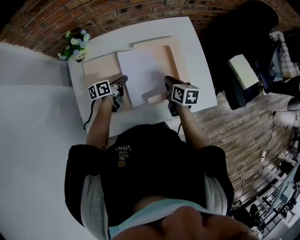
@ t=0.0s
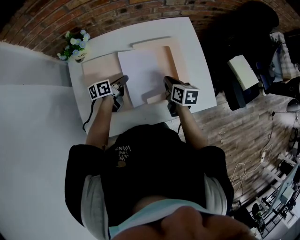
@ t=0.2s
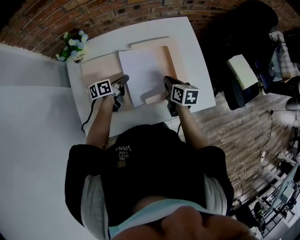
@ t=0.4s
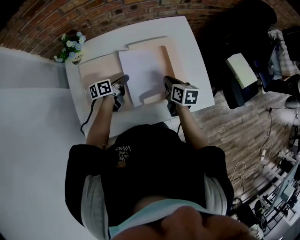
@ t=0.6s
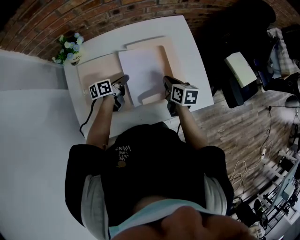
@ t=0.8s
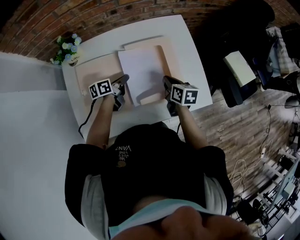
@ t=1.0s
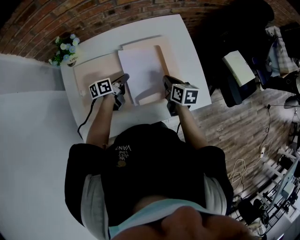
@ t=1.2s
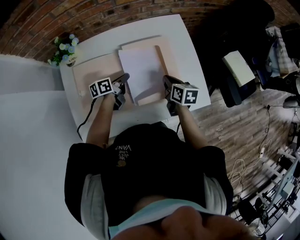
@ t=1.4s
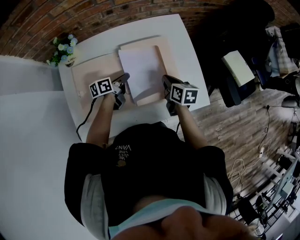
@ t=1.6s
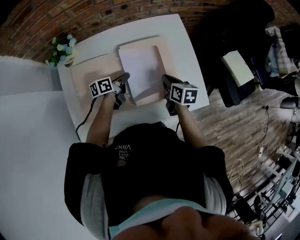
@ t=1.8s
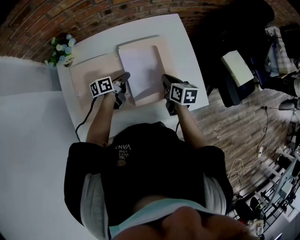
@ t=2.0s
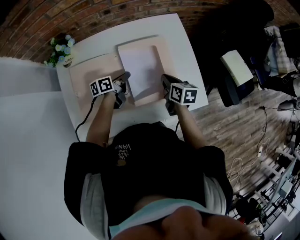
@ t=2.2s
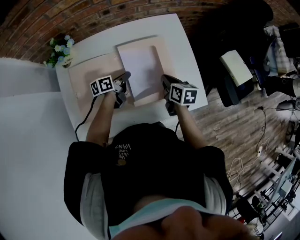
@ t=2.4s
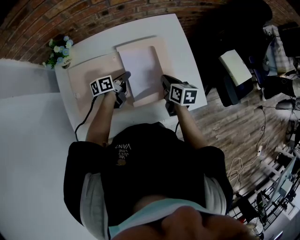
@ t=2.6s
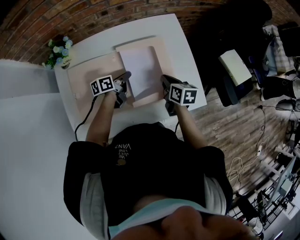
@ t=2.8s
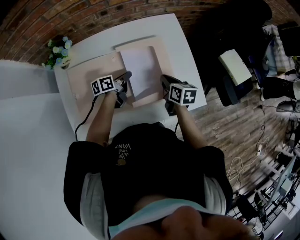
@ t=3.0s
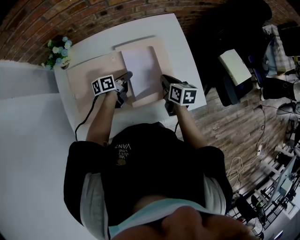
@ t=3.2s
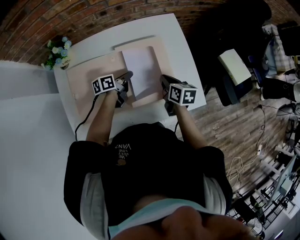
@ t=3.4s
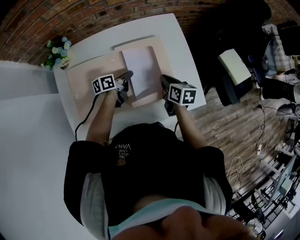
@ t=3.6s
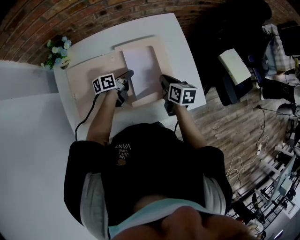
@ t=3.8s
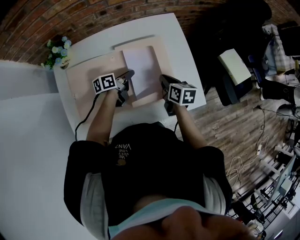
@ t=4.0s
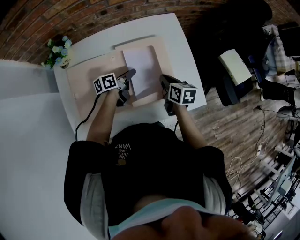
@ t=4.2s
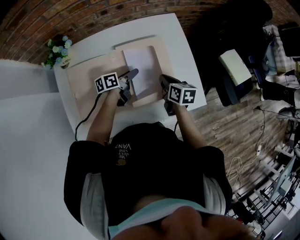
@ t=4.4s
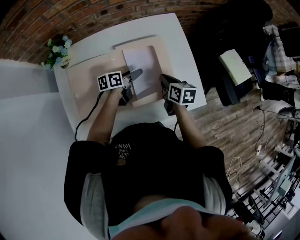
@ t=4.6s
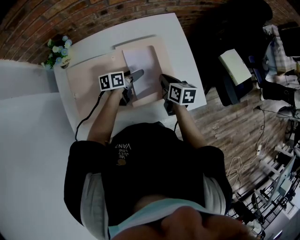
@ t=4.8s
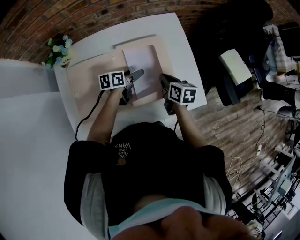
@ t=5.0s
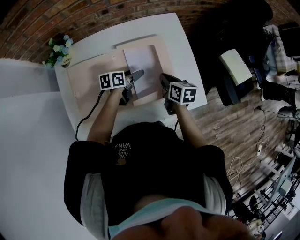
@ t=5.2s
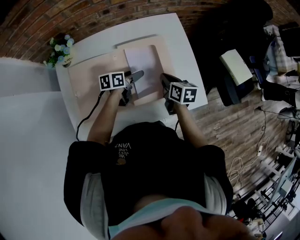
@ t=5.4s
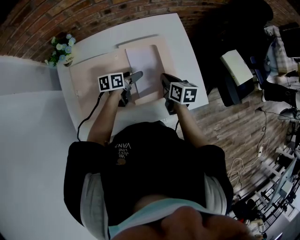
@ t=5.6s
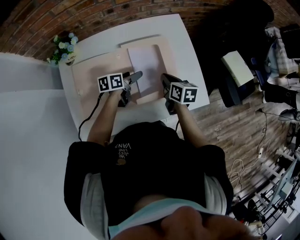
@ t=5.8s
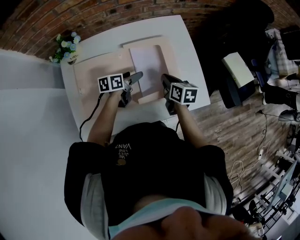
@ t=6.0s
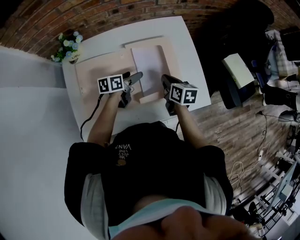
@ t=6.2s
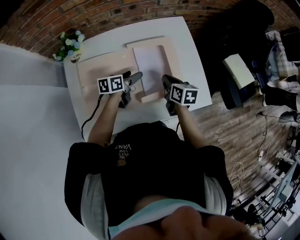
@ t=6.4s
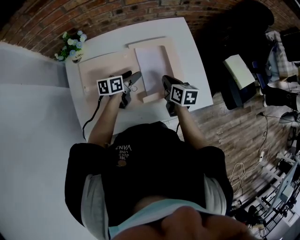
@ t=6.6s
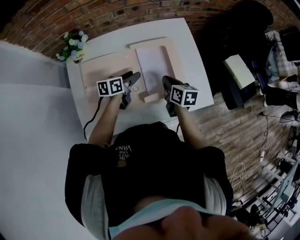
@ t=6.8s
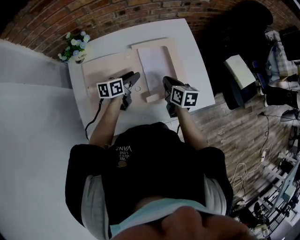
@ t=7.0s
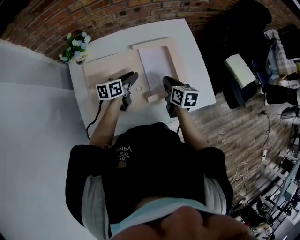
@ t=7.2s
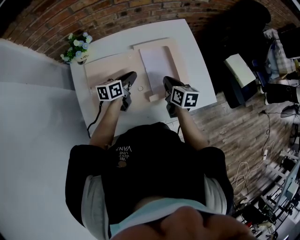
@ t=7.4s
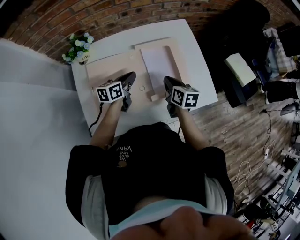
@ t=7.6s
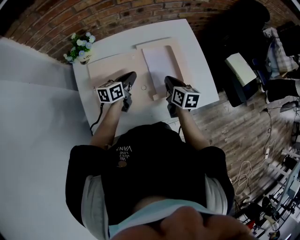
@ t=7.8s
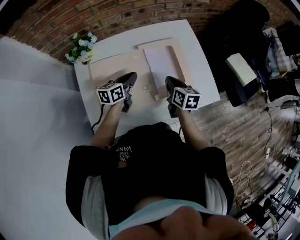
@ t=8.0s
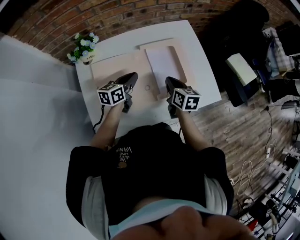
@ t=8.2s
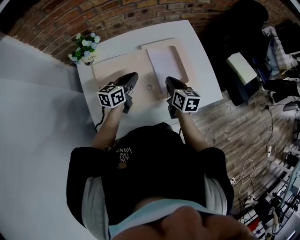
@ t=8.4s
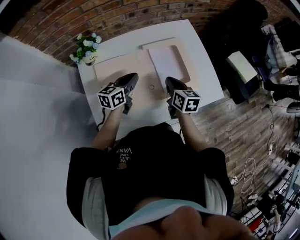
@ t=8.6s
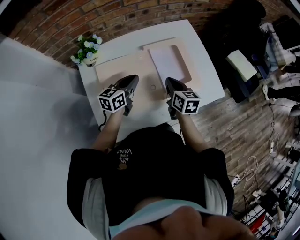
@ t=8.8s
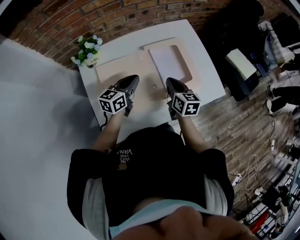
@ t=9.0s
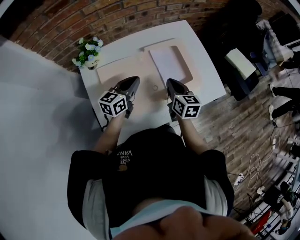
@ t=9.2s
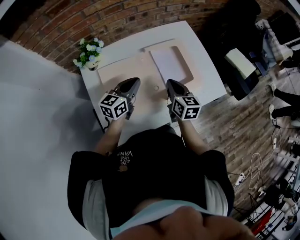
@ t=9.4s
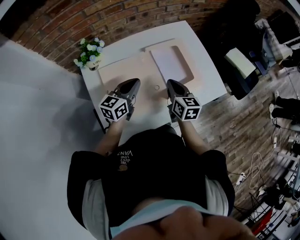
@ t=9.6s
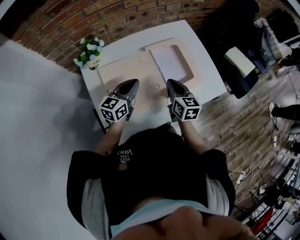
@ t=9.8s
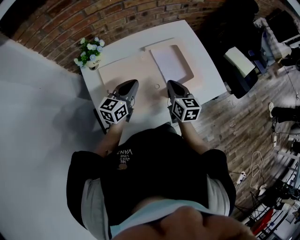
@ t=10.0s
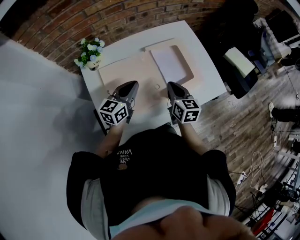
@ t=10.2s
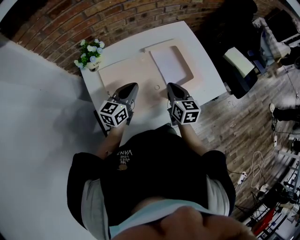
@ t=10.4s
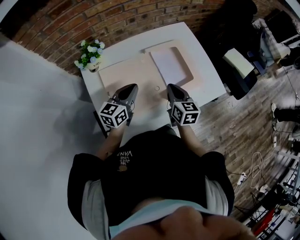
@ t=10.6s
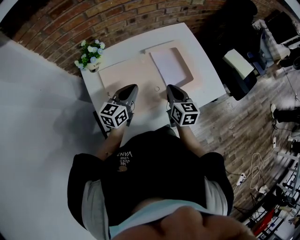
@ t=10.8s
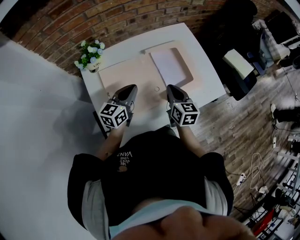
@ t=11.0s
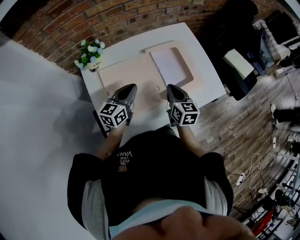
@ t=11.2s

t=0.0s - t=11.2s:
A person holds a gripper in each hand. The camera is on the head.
t=0.0s - t=1.6s: The left gripper travels to the right by approximately 5 cm.
t=1.6s - t=3.2s: The grippers move only a little.
t=3.2s - t=4.8s: The left gripper opens its fingers.
t=4.8s - t=6.4s: The left gripper is displaced to the left by about 5 cm.
t=6.4s - t=8.0s: The left gripper goes roughly 10 cm to the left and upward, and closes its fingers. The right gripper shifts by some 5 cm.
t=8.0s - t=9.6s: The right gripper shifts about 5 cm to the left. Meanwhile the left gripper heads upward and backward, covering about 10 cm, and turns by some 20 degrees.
t=9.6s - t=11.2s: The grippers stay close to where they were, moving slightly.

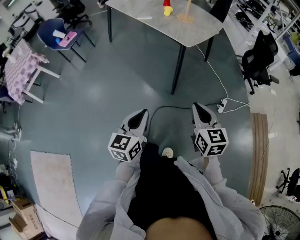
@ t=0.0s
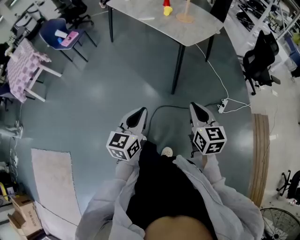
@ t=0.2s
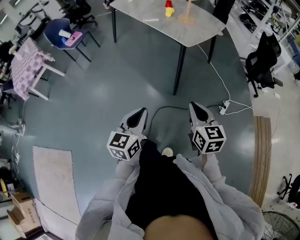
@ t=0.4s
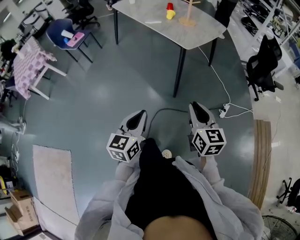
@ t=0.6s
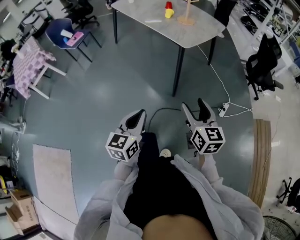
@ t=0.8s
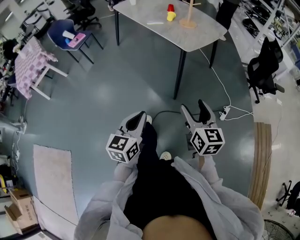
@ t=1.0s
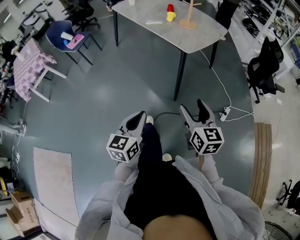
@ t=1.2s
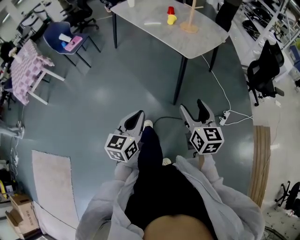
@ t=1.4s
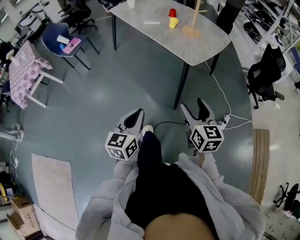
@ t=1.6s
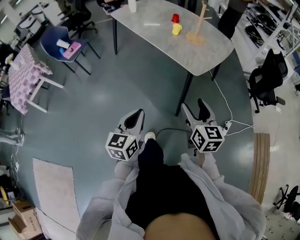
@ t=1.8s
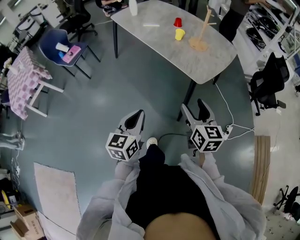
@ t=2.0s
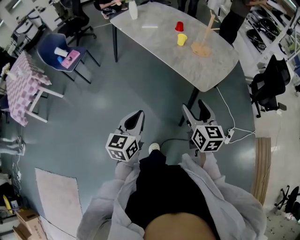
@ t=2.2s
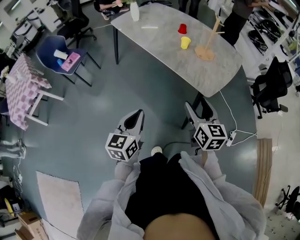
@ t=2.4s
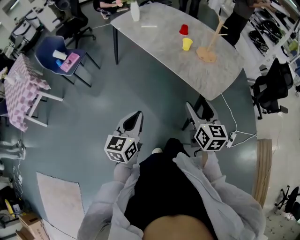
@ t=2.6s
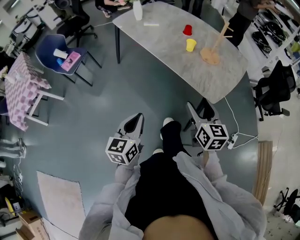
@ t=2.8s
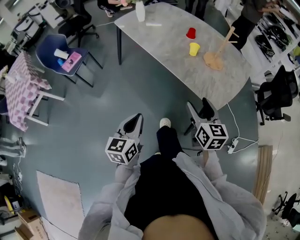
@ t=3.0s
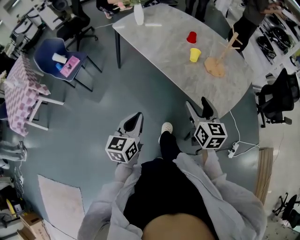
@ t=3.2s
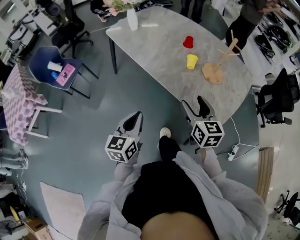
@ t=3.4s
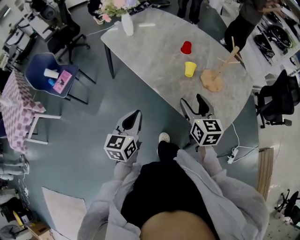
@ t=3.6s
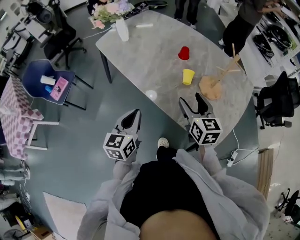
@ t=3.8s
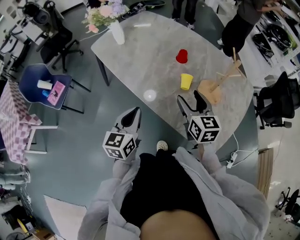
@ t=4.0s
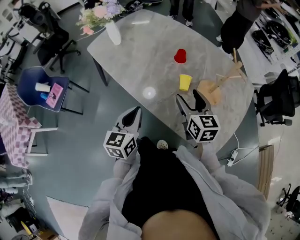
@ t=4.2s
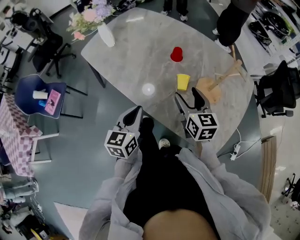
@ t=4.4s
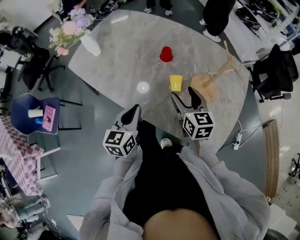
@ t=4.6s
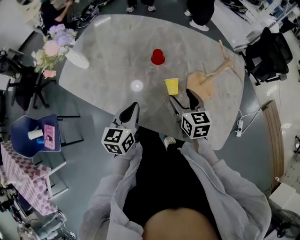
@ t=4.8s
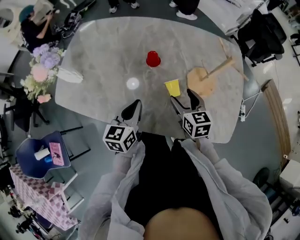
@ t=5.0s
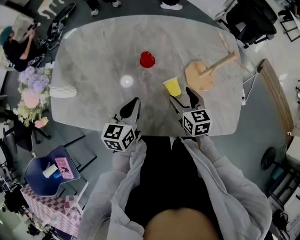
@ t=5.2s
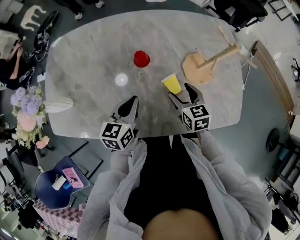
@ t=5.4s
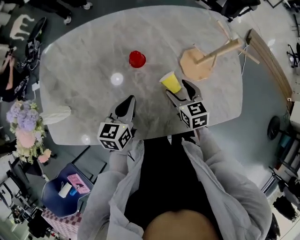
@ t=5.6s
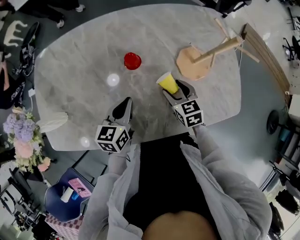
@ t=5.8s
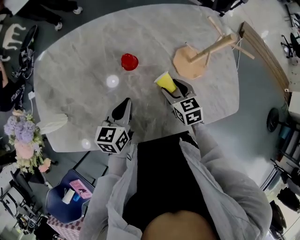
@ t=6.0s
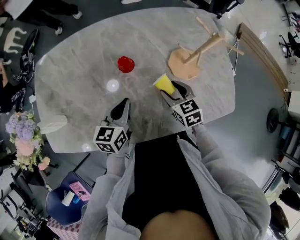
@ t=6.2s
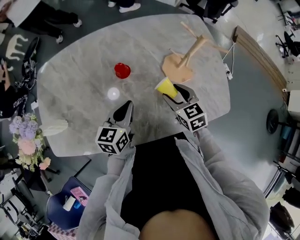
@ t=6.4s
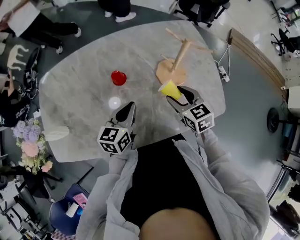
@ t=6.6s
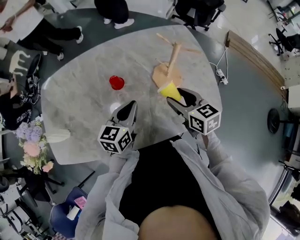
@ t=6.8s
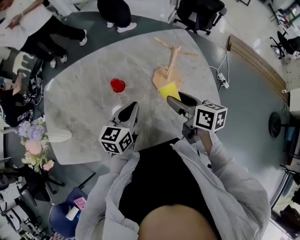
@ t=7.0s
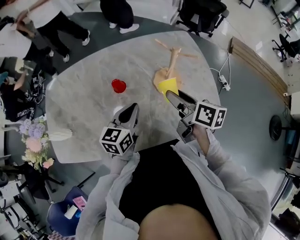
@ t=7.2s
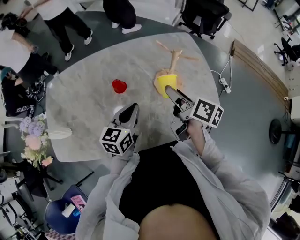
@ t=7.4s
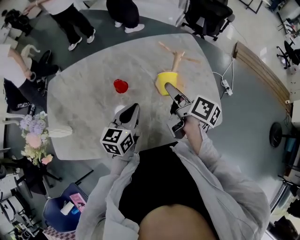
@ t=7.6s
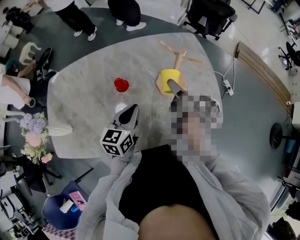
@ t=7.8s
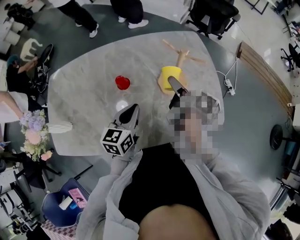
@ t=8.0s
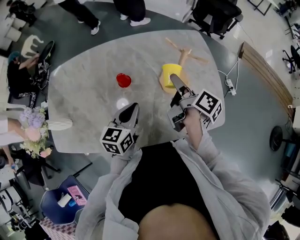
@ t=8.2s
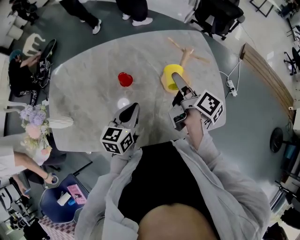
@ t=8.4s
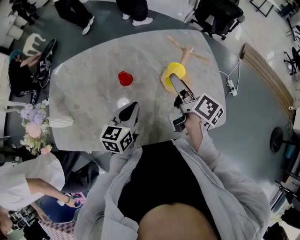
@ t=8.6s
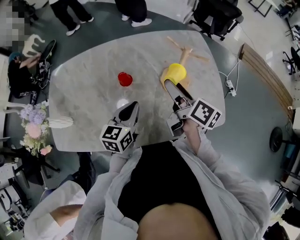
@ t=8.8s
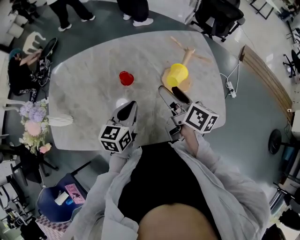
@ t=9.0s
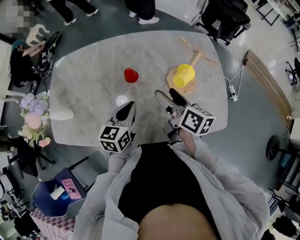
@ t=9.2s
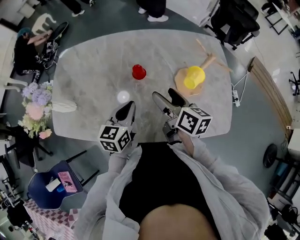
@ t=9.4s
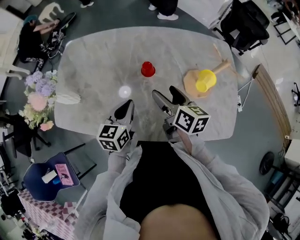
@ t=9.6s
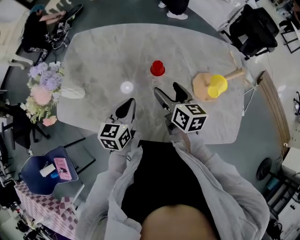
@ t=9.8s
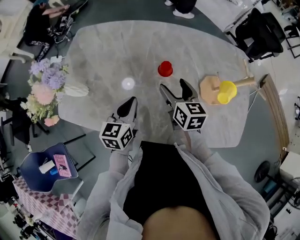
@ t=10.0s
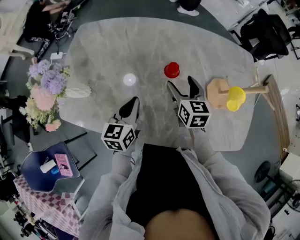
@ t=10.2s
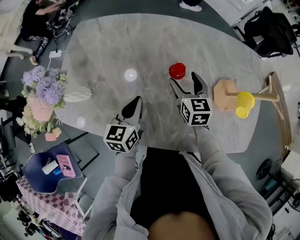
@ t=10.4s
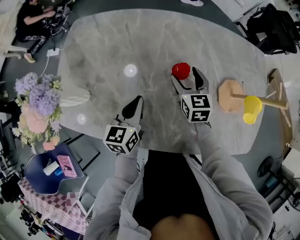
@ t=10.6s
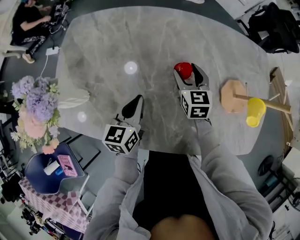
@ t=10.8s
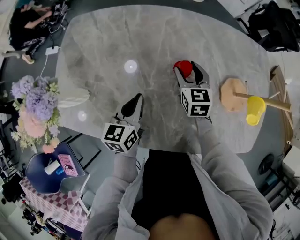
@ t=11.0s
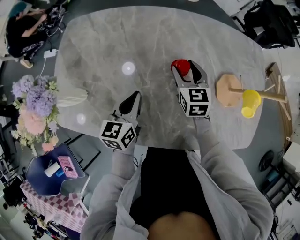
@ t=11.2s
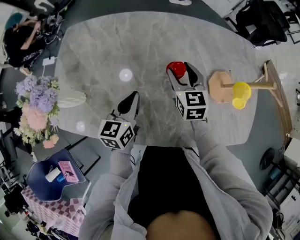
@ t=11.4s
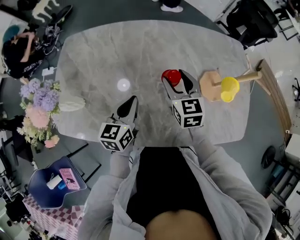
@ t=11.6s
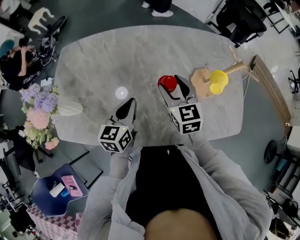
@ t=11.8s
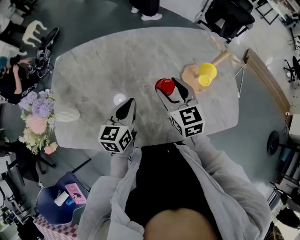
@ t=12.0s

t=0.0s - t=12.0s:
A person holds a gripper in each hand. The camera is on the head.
t=0.0s - t=1.6s: The grippers both shift forward by some 15 cm. The right gripper opens up.
t=1.6s - t=3.0s: The right gripper shifts about 30 cm forward. Meanwhile the left gripper moves forward and to the left, some 30 cm.
t=3.0s - t=4.4s: Both grippers travel together forward, some 40 cm.
t=4.4s - t=6.0s: The right gripper is displaced downward by about 15 cm, and swivels approximately 40 degrees; the left gripper ends up some 25 cm from where it was, and turns by about 50 degrees.
t=6.0s - t=7.6s: The left gripper shifts about 15 cm to the right and upward, while the right gripper shifts roughly 20 cm upward and to the right, and rotates around the line of its fingers by about 60 degrees, clockwise from behind.
t=7.6s - t=9.0s: The grippers move only a little.
t=9.0s - t=10.4s: The right gripper moves to the left, downward and forward, about 25 cm, and twists roughly 50 degrees counterclockwise, seen from behind, while the left gripper shifts some 20 cm to the left, and rotates some 20 degrees.
t=10.4s - t=12.0s: The left gripper is displaced to the right by approximately 10 cm. Meanwhile the right gripper moves upward, backward and to the right, some 15 cm.
